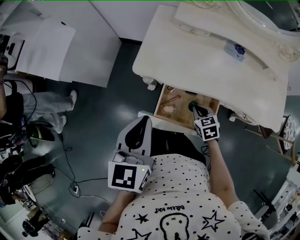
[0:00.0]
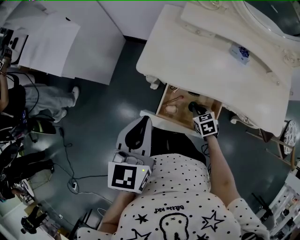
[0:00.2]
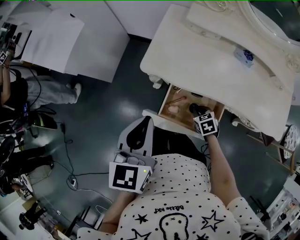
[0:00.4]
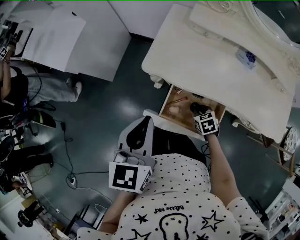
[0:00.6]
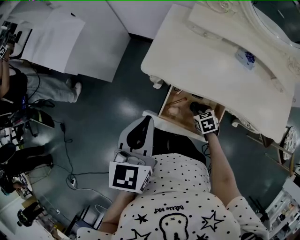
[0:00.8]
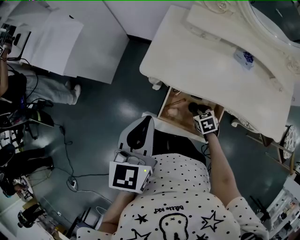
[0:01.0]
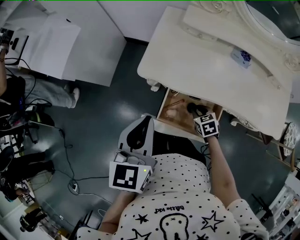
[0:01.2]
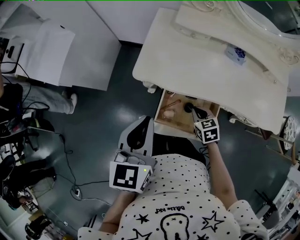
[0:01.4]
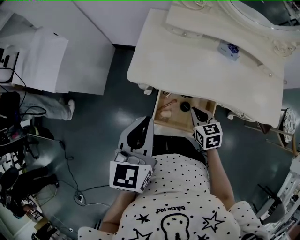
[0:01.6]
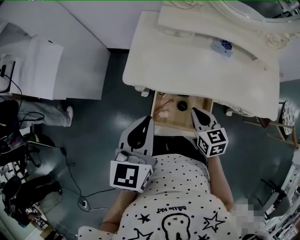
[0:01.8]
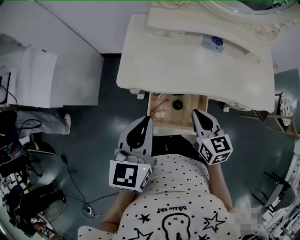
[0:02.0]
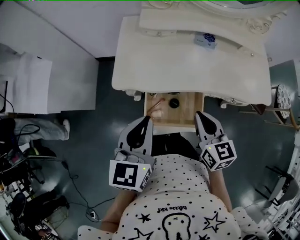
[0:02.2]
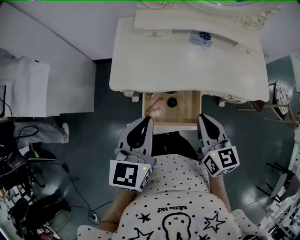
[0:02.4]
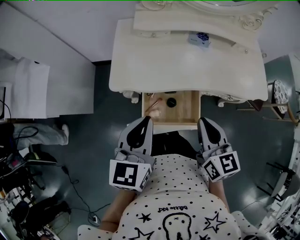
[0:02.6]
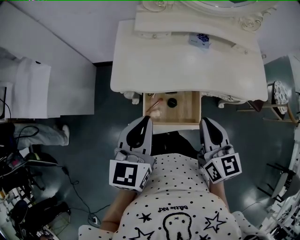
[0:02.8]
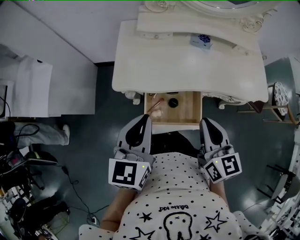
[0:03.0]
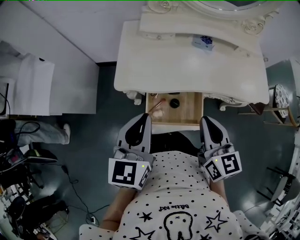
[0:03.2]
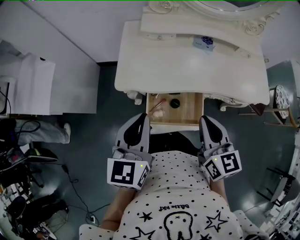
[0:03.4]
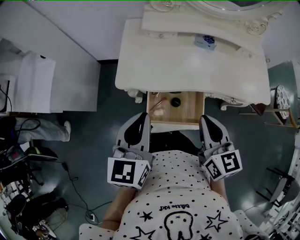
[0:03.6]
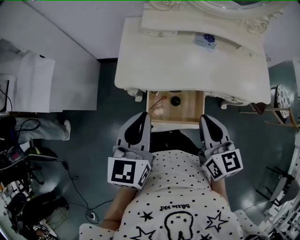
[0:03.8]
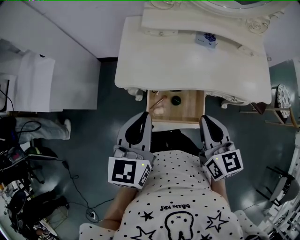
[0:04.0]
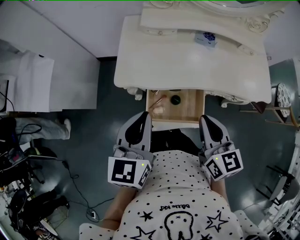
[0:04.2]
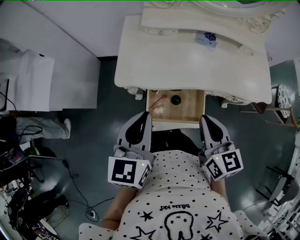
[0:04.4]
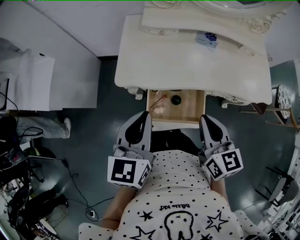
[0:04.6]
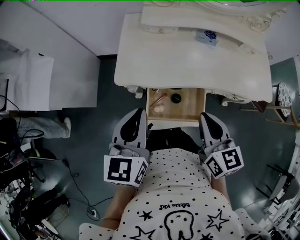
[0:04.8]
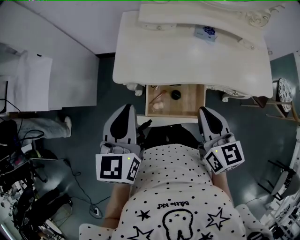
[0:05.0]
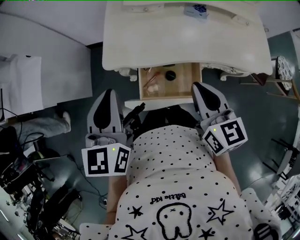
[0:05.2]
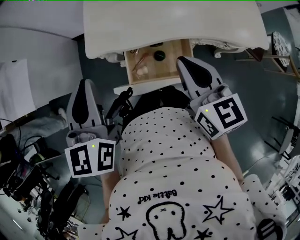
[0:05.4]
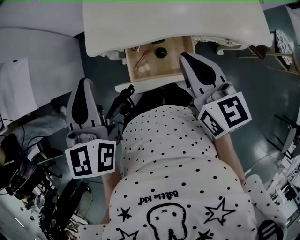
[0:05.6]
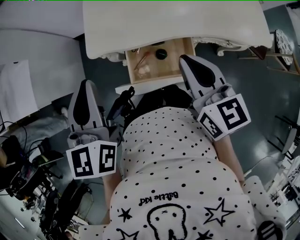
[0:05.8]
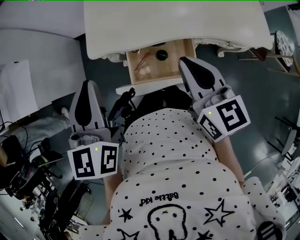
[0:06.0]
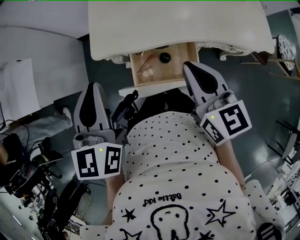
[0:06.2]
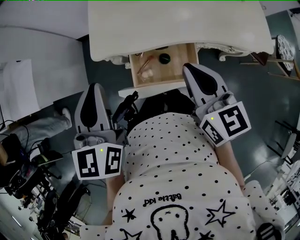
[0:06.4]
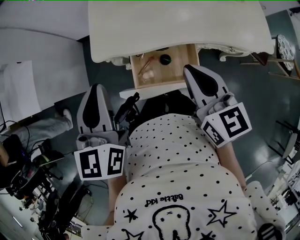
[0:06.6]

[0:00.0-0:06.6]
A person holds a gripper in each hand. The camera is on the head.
0:00.0 to 0:01.6: The right gripper goes roughly 5 cm upward.
0:01.6 to 0:03.2: The right gripper is displaced upward by approximately 20 cm, and turns by approximately 30 degrees.
0:03.2 to 0:05.0: The left gripper moves about 5 cm.
0:05.0 to 0:06.6: The grippers move only a little.

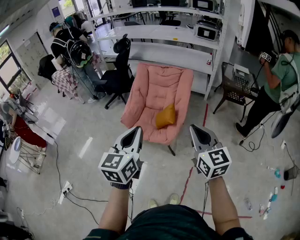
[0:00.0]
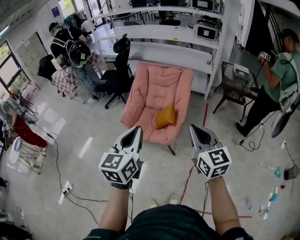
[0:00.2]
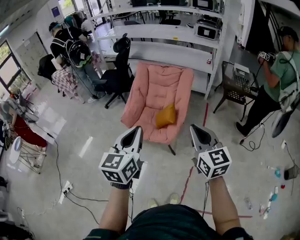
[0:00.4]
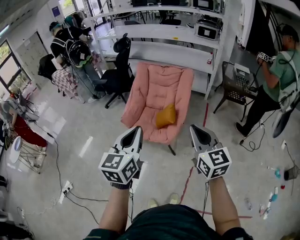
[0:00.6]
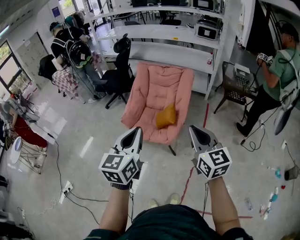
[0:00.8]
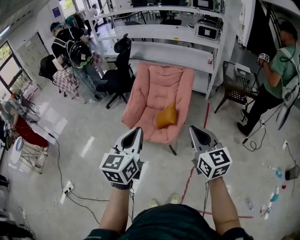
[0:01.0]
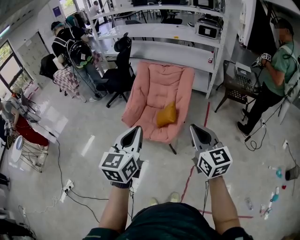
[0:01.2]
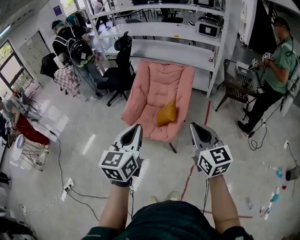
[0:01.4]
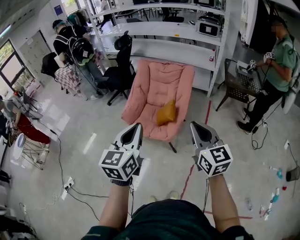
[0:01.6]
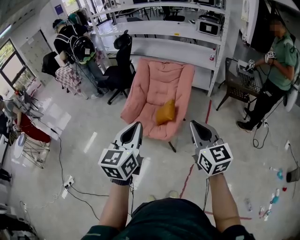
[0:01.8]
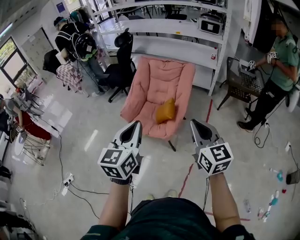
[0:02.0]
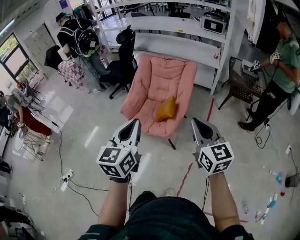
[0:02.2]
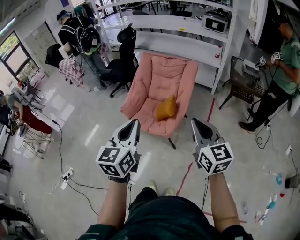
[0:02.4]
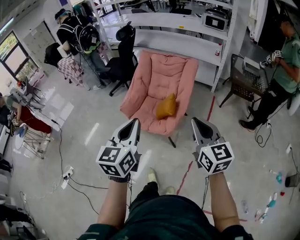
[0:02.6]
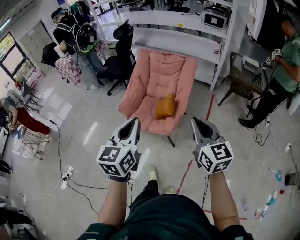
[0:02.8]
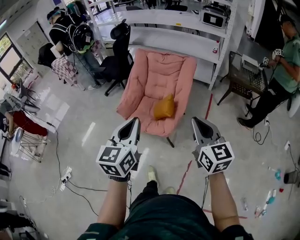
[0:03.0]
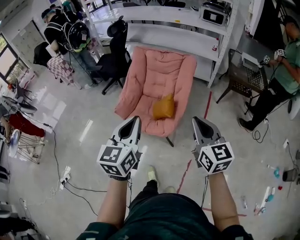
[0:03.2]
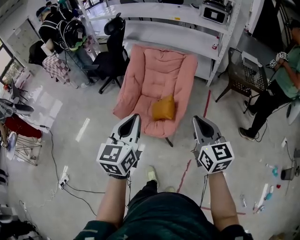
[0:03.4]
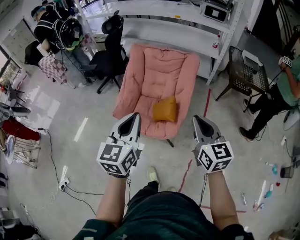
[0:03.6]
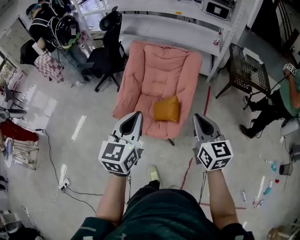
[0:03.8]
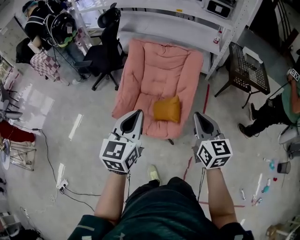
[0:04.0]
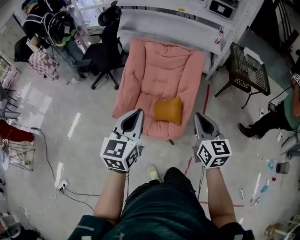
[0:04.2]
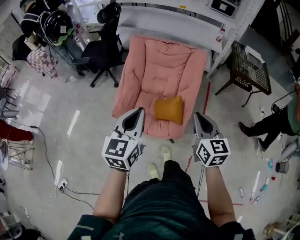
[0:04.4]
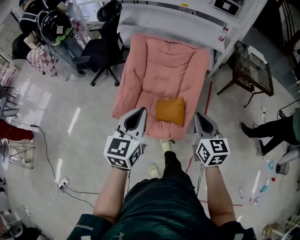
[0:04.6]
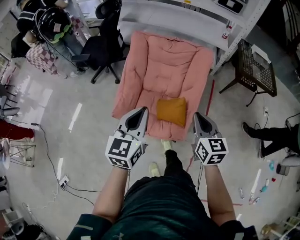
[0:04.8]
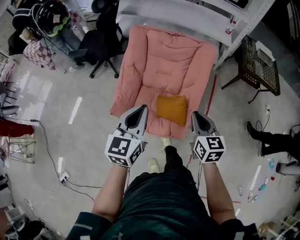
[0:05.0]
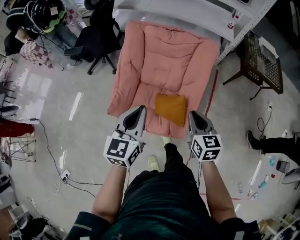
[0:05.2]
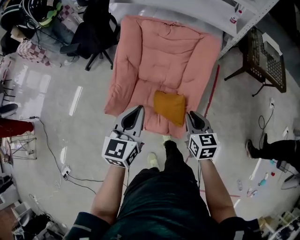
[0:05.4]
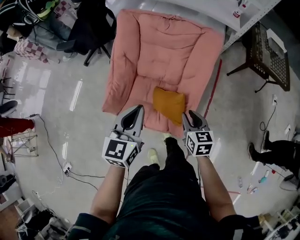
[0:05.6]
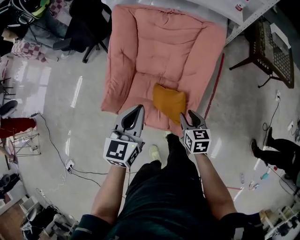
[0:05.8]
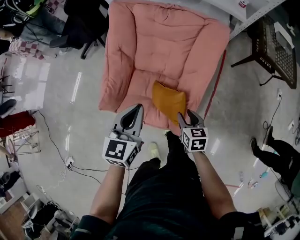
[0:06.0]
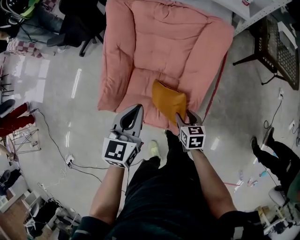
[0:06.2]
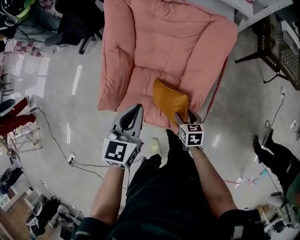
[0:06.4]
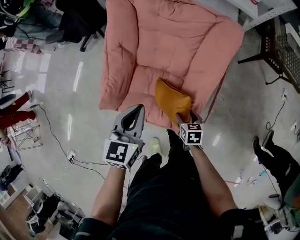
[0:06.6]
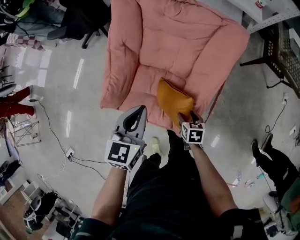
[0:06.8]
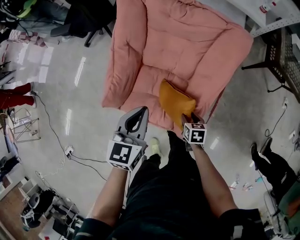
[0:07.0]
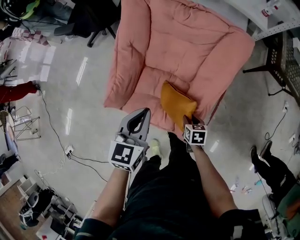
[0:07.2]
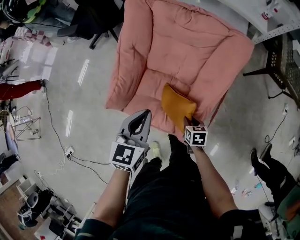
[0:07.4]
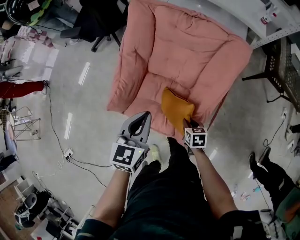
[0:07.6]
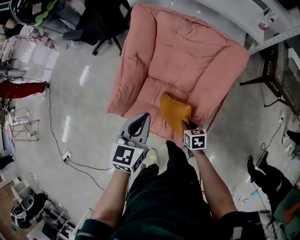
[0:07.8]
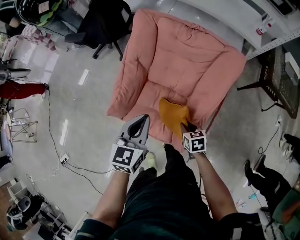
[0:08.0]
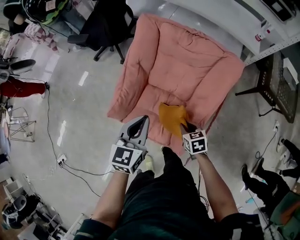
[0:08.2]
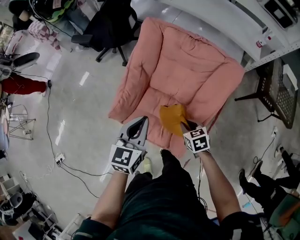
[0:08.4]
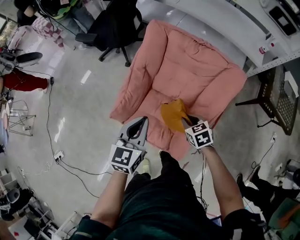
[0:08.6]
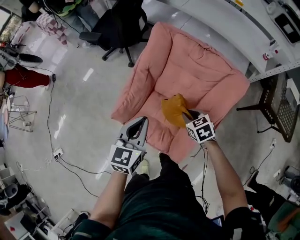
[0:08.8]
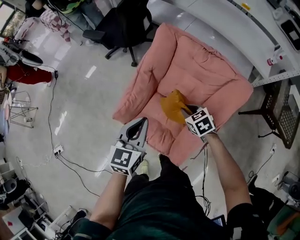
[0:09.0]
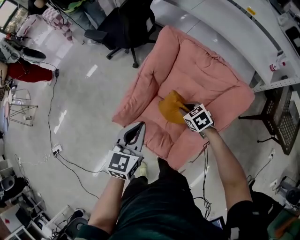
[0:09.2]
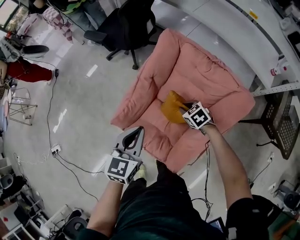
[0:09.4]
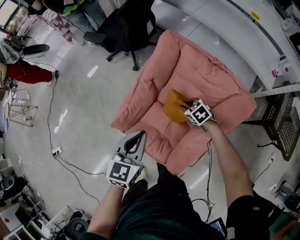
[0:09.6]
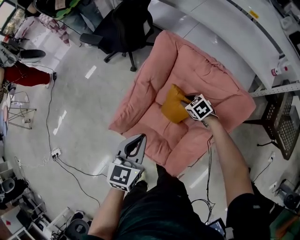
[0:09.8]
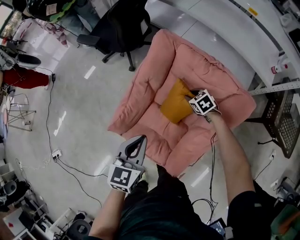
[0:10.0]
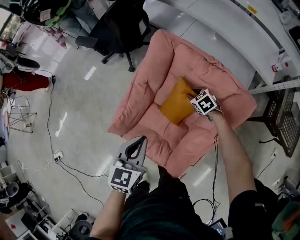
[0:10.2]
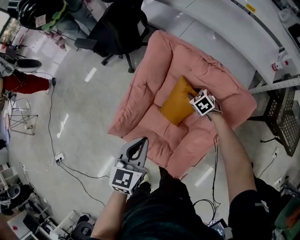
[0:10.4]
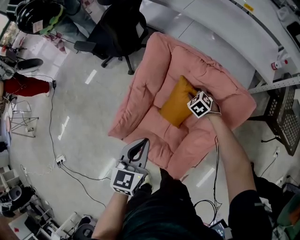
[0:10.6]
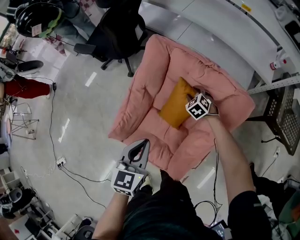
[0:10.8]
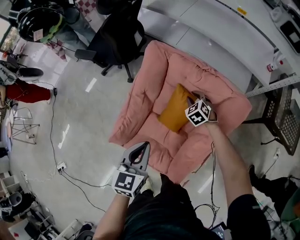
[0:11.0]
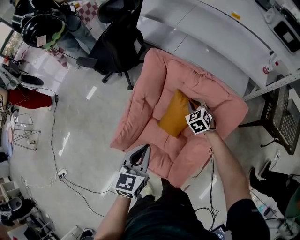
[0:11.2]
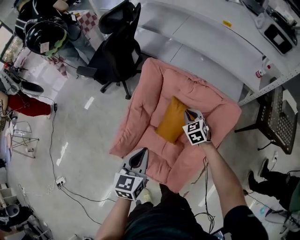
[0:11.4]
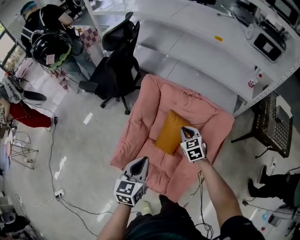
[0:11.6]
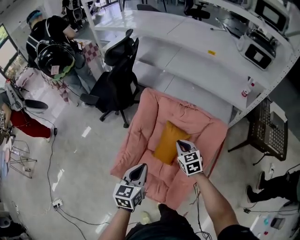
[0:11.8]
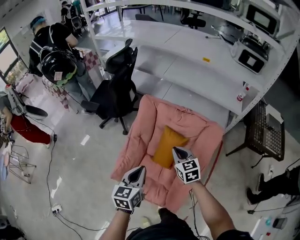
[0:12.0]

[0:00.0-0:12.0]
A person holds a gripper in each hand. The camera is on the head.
0:00.0 to 0:01.6: The grippers make only small movements.
0:01.6 to 0:03.0: The two grippers go about 5 cm forward.
0:03.0 to 0:04.4: The left gripper goes some 25 cm forward and to the left. The right gripper is displaced forward, to the left and downward by approximately 25 cm.
0:04.4 to 0:06.0: The right gripper moves downward and forward, approximately 35 cm, changes its angle by about 30 degrees, and opens its fingers. Meanwhile the left gripper moves forward and downward, roughly 25 cm.
0:06.0 to 0:07.6: The right gripper shifts approximately 10 cm downward, and opens, then closes once more.
0:07.6 to 0:09.0: The left gripper moves upward, approximately 5 cm, while the right gripper is displaced forward and upward by about 25 cm, and rotates around the line of its fingers by approximately 40 degrees, counterclockwise from behind.
0:09.0 to 0:10.4: The right gripper is displaced forward, to the right and downward by about 20 cm. Meanwhile the left gripper ends up roughly 5 cm from where it was.
0:10.4 to 0:12.0: The left gripper is displaced upward by approximately 10 cm. The right gripper goes some 30 cm upward and backward, tilts its fingers roughly 30 degrees upward, and closes its fingers.

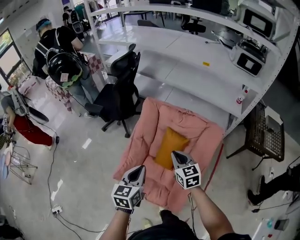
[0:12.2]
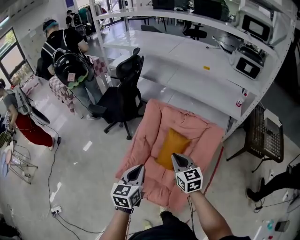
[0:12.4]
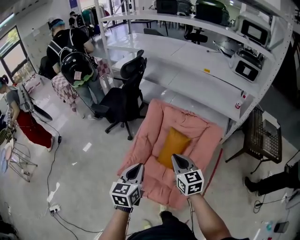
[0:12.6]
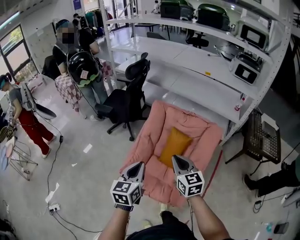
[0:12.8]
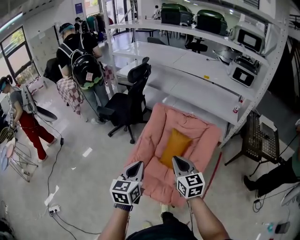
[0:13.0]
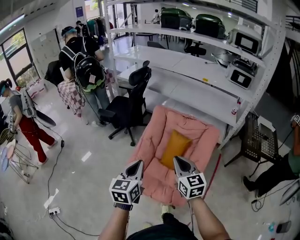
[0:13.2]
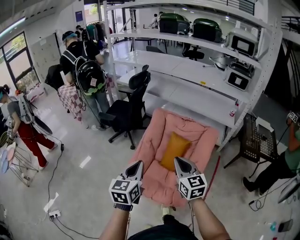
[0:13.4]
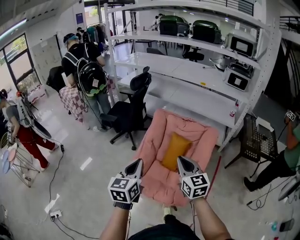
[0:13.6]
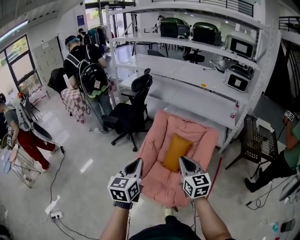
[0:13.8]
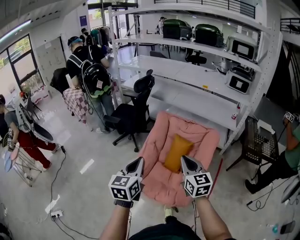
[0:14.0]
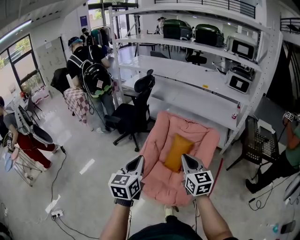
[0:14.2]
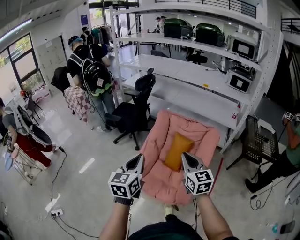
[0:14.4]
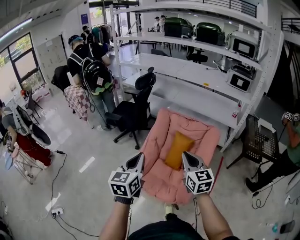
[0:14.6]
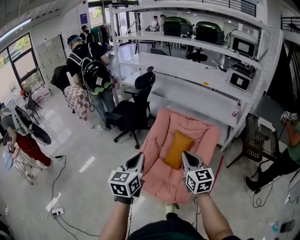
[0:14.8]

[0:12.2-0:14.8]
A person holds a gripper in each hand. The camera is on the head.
0:12.2 to 0:13.4: The left gripper moves backward, upward and to the left, approximately 20 cm. Meanwhile the right gripper shifts about 25 cm backward and upward.
0:13.4 to 0:14.8: There are only small adjustments of the grippers.

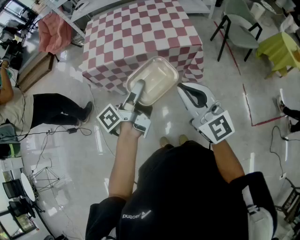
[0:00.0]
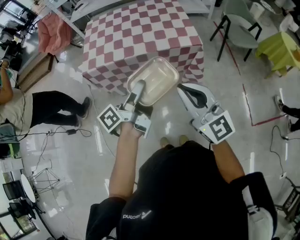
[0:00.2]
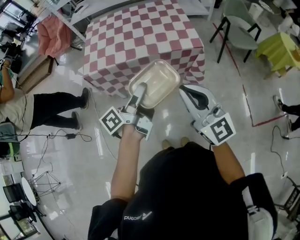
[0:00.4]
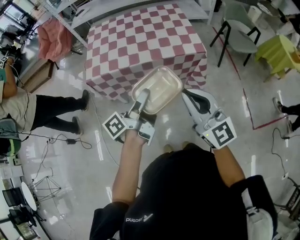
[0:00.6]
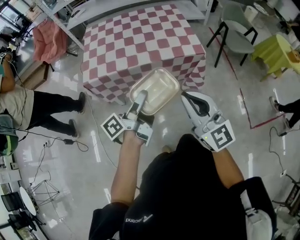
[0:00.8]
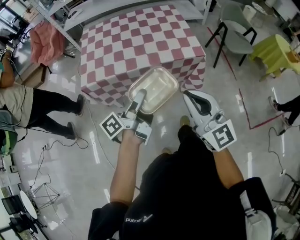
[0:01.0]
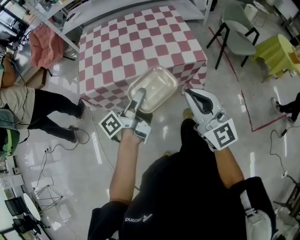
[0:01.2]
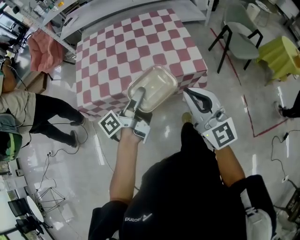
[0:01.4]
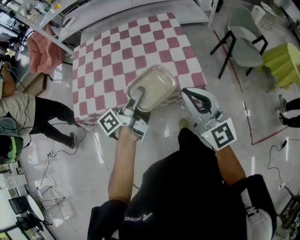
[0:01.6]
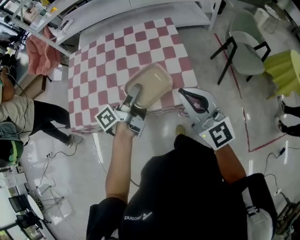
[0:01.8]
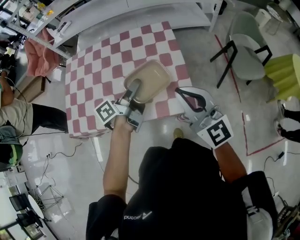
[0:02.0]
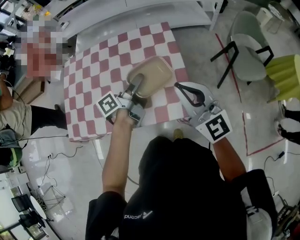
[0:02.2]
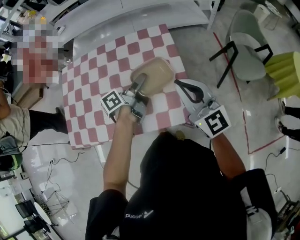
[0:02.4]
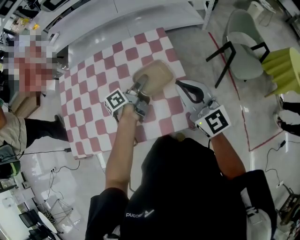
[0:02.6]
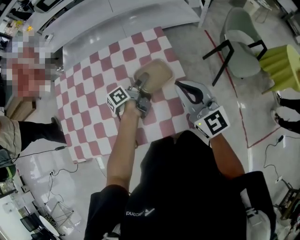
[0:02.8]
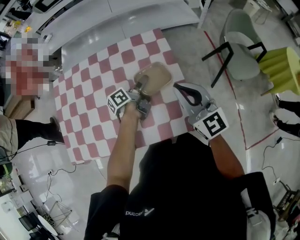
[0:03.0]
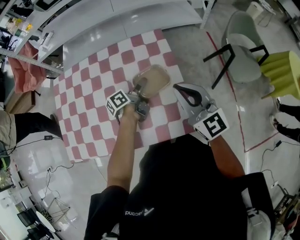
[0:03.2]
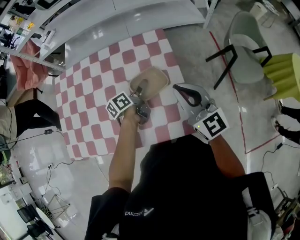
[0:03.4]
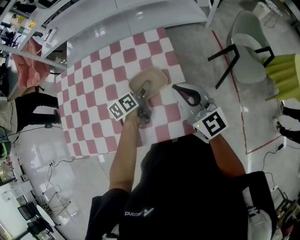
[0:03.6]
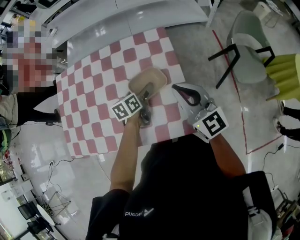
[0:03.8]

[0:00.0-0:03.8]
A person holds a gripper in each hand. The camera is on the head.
0:00.0 to 0:01.2: Both grippers travel together forward, approximately 10 cm.
0:01.2 to 0:02.6: The two grippers travel together, forward, roughly 50 cm.
0:02.6 to 0:03.8: The left gripper shifts roughly 5 cm downward, rotates some 40 degrees, and opens up. Meanwhile the right gripper changes place by about 5 cm.
